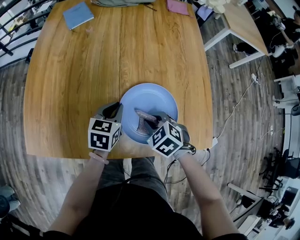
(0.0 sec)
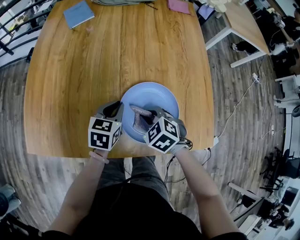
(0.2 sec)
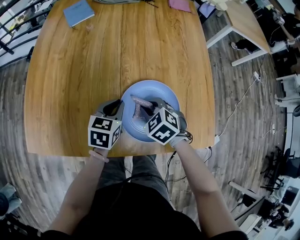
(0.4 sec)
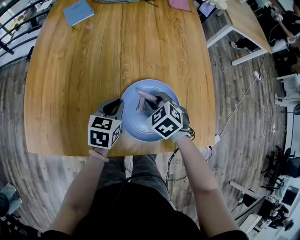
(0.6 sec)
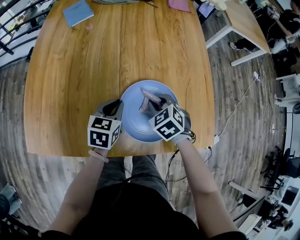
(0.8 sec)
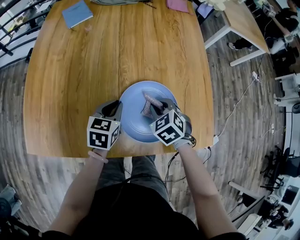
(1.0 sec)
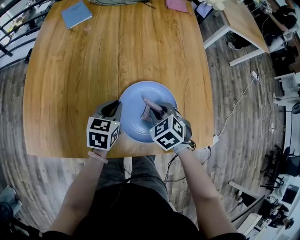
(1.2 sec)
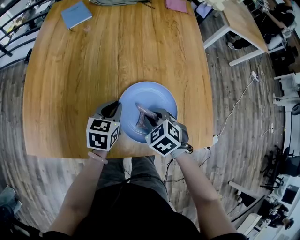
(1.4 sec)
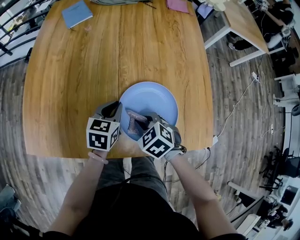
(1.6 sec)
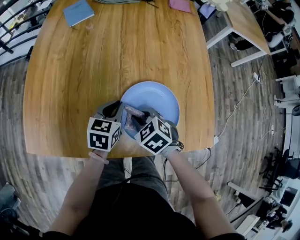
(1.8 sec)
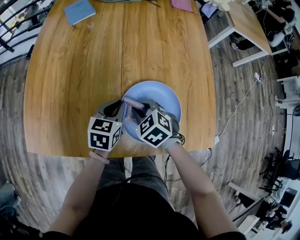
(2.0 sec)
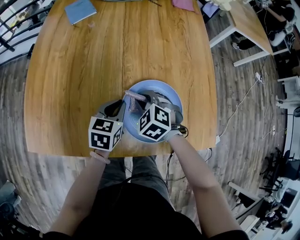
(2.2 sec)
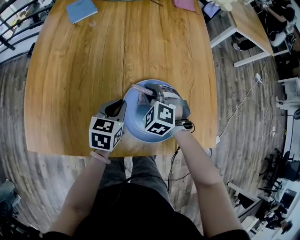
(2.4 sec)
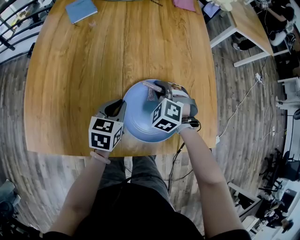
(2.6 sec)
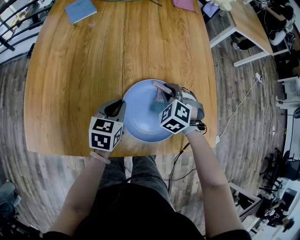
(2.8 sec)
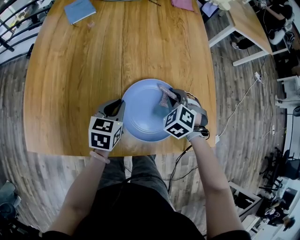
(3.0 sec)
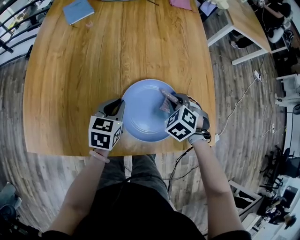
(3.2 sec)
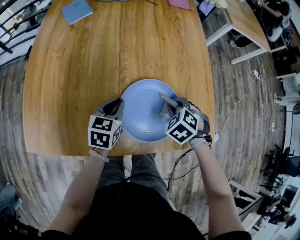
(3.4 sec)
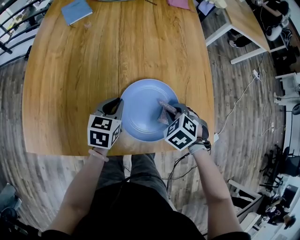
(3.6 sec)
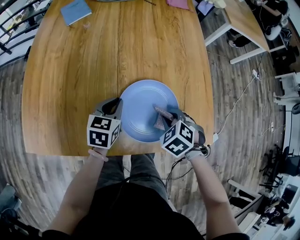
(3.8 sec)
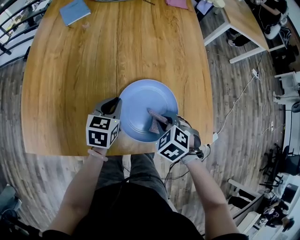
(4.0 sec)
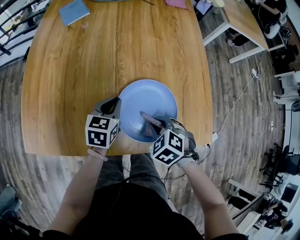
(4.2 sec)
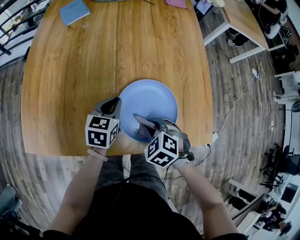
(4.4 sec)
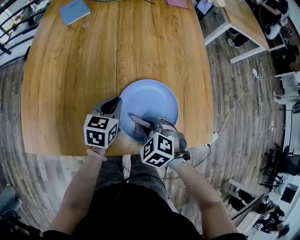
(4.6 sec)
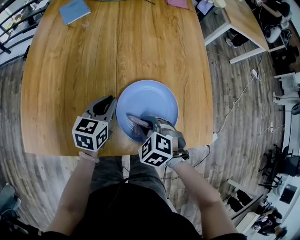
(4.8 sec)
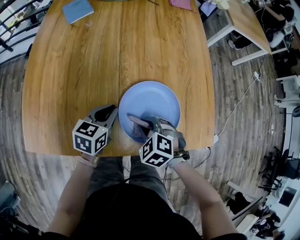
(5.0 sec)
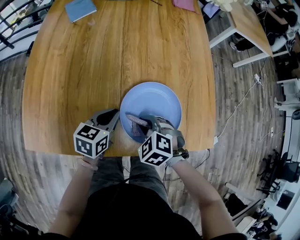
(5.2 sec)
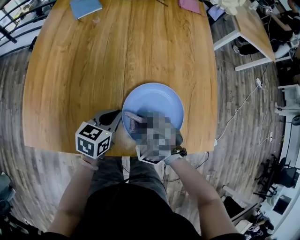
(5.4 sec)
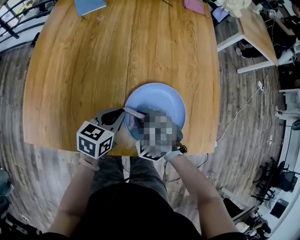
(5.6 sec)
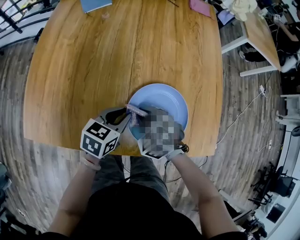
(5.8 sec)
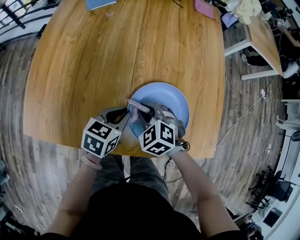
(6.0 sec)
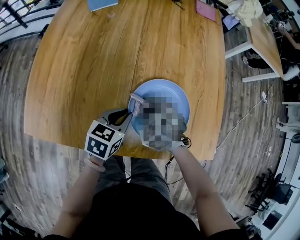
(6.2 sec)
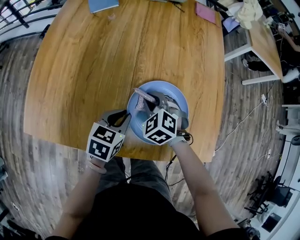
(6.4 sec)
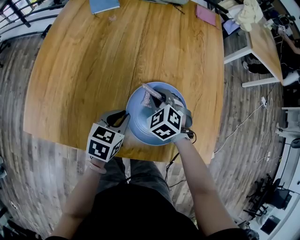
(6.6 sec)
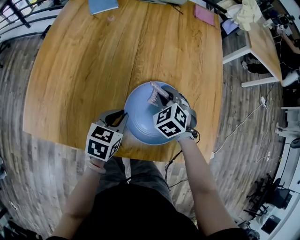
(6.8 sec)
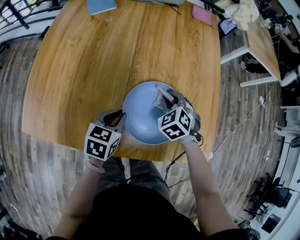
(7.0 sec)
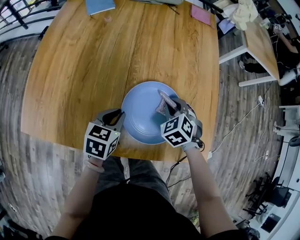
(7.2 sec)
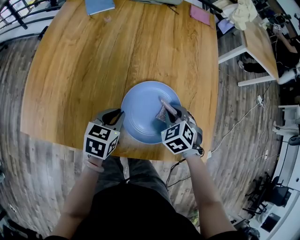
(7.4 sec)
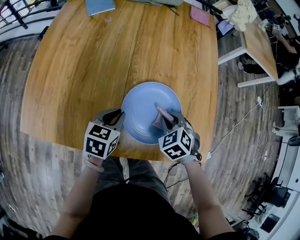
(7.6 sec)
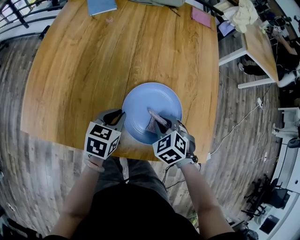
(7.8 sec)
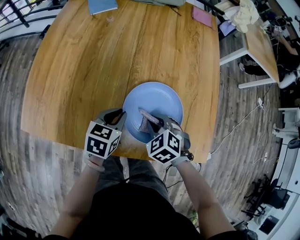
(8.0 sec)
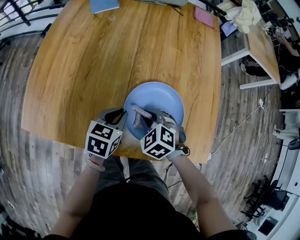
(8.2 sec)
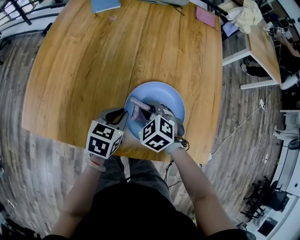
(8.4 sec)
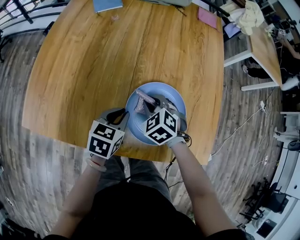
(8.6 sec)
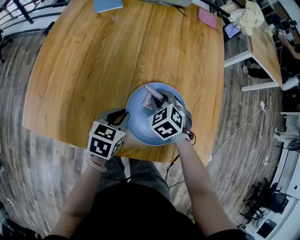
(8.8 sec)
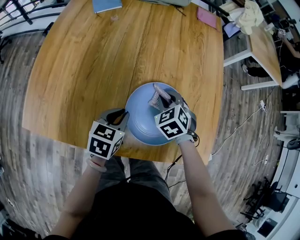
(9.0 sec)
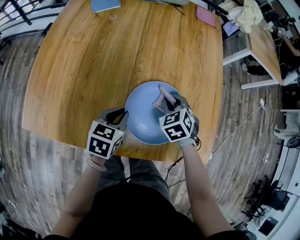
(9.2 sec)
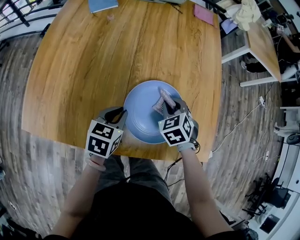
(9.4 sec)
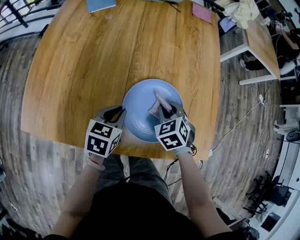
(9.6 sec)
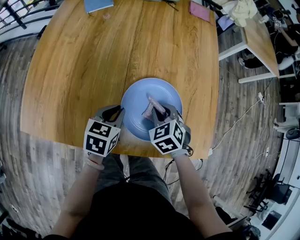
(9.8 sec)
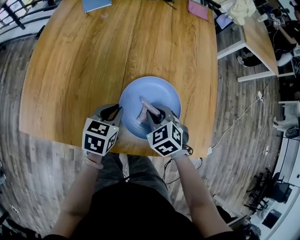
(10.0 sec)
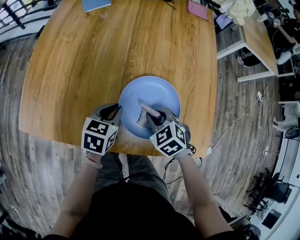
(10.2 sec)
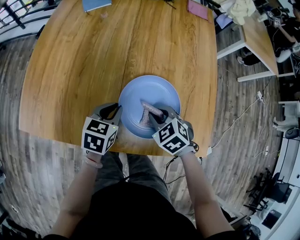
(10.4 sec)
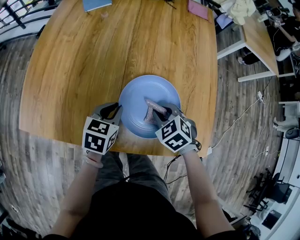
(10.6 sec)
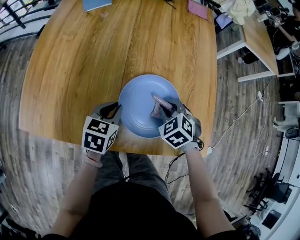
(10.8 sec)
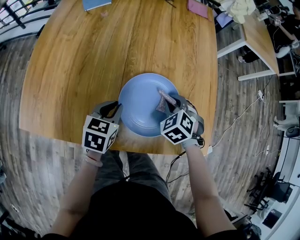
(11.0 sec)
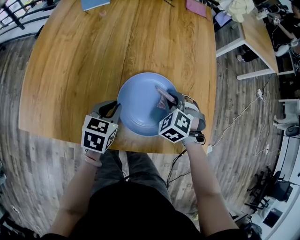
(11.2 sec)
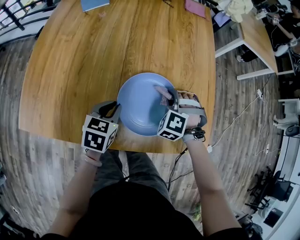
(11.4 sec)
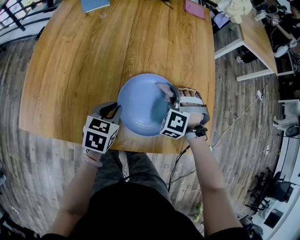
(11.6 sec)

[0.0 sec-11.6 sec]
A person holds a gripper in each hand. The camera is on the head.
1.4 sec to 2.8 sec: The right gripper is displaced forward and to the right by about 10 cm, and rotates approximately 30 degrees.
2.8 sec to 4.4 sec: The right gripper travels backward by some 15 cm, and rotates some 20 degrees.
4.4 sec to 5.8 sec: The right gripper heads to the left and forward, covering some 10 cm.
5.8 sec to 7.2 sec: The right gripper goes roughly 15 cm to the right and forward.
7.2 sec to 8.8 sec: The right gripper is displaced to the left by roughly 10 cm.
8.8 sec to 10.2 sec: The right gripper moves backward, some 10 cm.
10.2 sec to 11.6 sec: The right gripper is displaced forward and to the right by some 10 cm, and changes its angle by some 50 degrees.

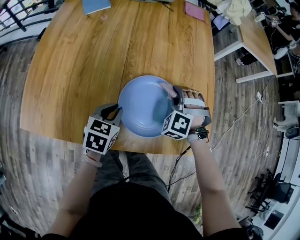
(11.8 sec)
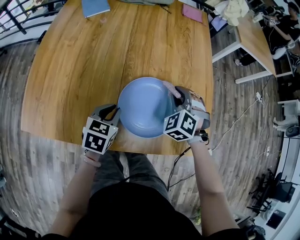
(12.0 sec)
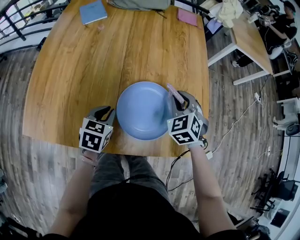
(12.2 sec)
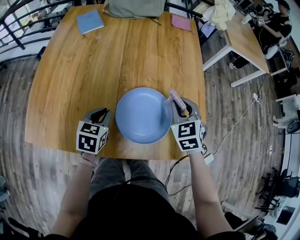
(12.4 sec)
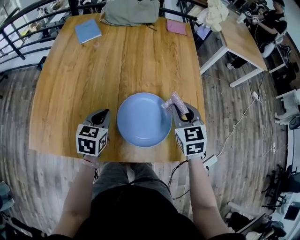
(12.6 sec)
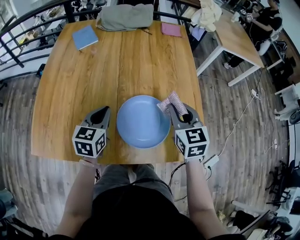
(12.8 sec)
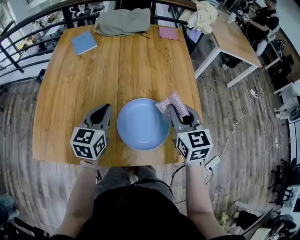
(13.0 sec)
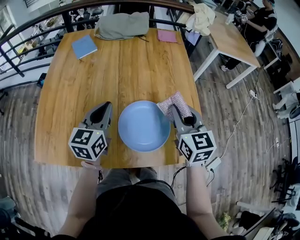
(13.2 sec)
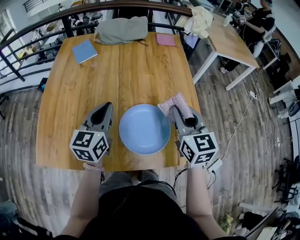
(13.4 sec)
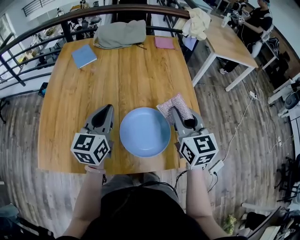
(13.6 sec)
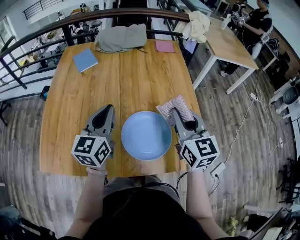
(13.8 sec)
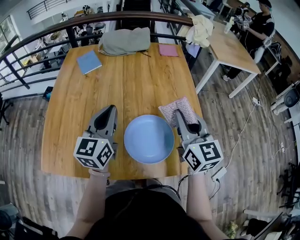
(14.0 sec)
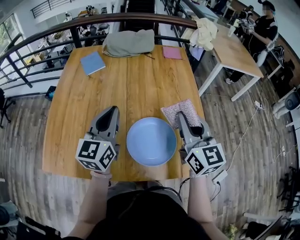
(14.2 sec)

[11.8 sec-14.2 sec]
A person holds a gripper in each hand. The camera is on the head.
11.8 sec to 13.0 sec: The left gripper moves upward and forward, approximately 15 cm, and changes its angle by approximately 30 degrees; the right gripper travels upward by some 15 cm, and twists about 70 degrees clockwise, seen from behind.
13.0 sec to 14.2 sec: Both grippers move upward, roughly 10 cm.

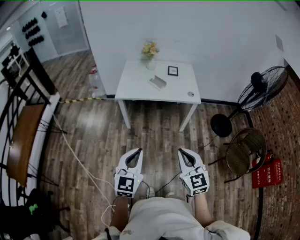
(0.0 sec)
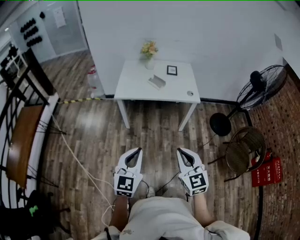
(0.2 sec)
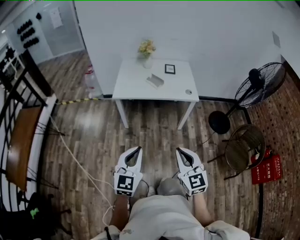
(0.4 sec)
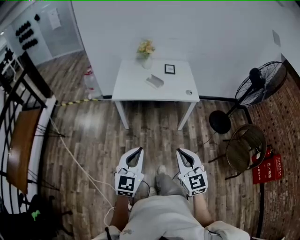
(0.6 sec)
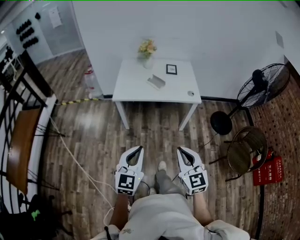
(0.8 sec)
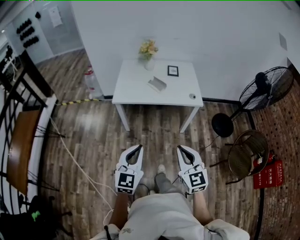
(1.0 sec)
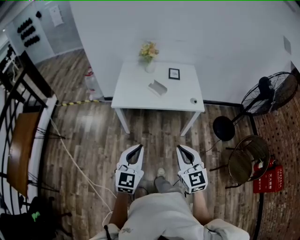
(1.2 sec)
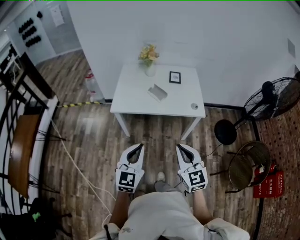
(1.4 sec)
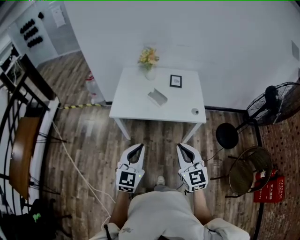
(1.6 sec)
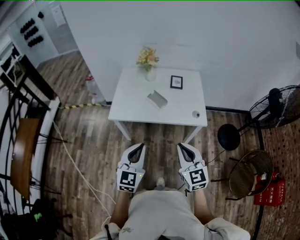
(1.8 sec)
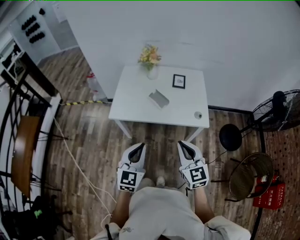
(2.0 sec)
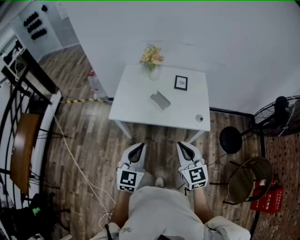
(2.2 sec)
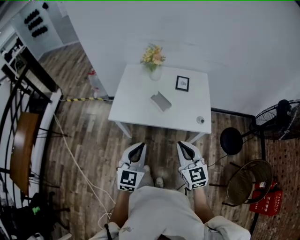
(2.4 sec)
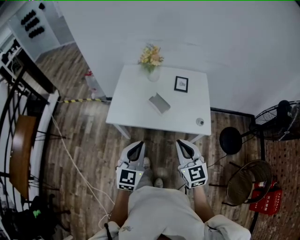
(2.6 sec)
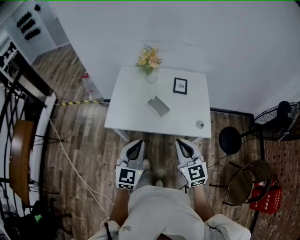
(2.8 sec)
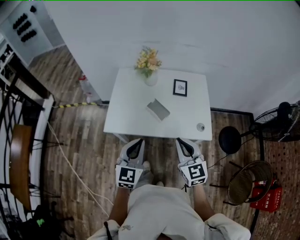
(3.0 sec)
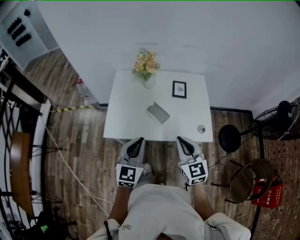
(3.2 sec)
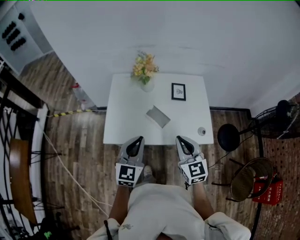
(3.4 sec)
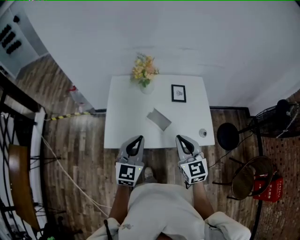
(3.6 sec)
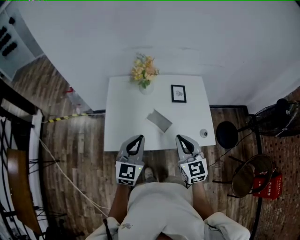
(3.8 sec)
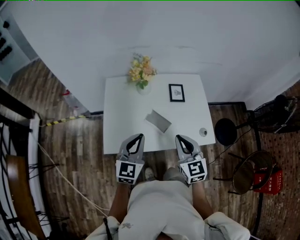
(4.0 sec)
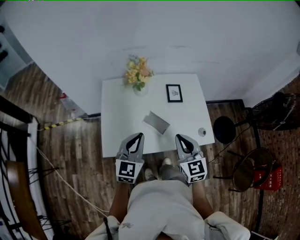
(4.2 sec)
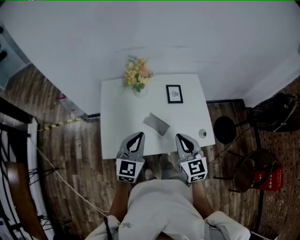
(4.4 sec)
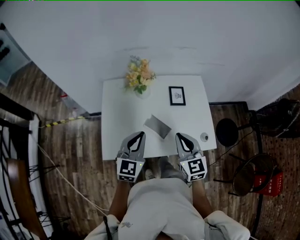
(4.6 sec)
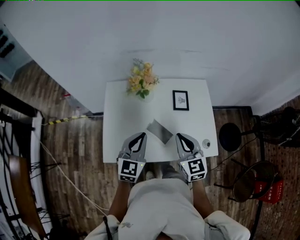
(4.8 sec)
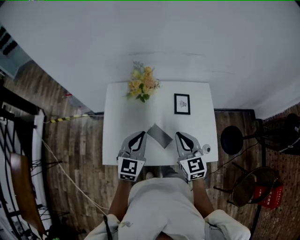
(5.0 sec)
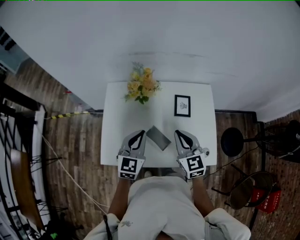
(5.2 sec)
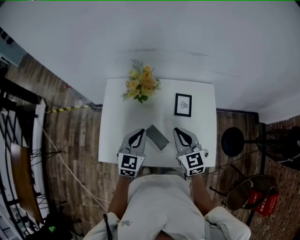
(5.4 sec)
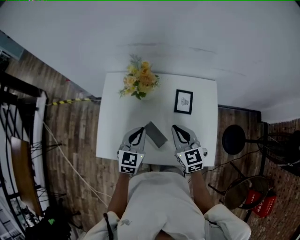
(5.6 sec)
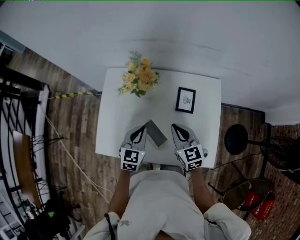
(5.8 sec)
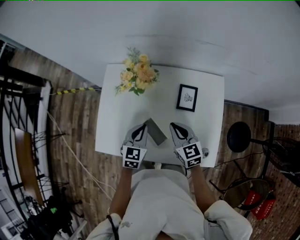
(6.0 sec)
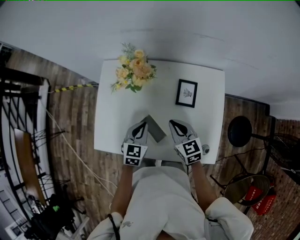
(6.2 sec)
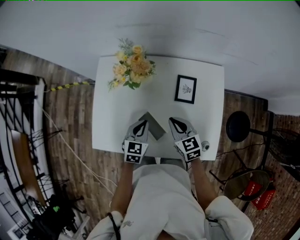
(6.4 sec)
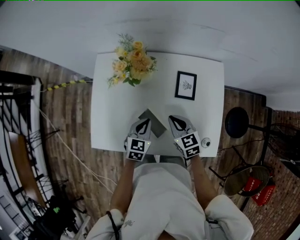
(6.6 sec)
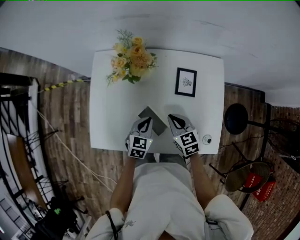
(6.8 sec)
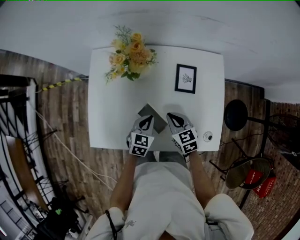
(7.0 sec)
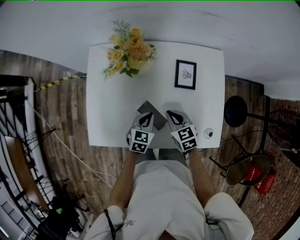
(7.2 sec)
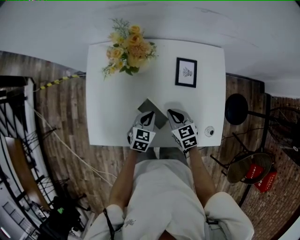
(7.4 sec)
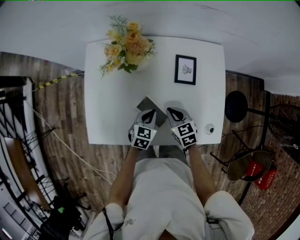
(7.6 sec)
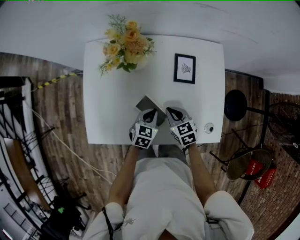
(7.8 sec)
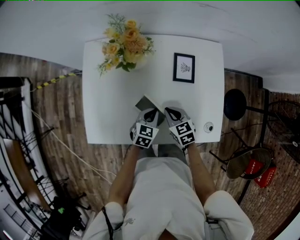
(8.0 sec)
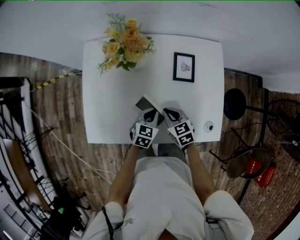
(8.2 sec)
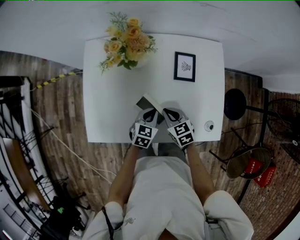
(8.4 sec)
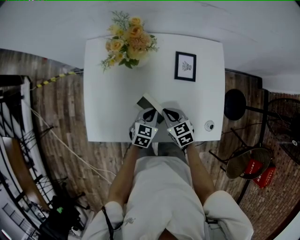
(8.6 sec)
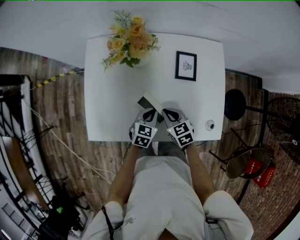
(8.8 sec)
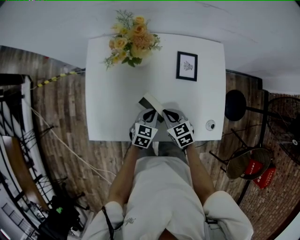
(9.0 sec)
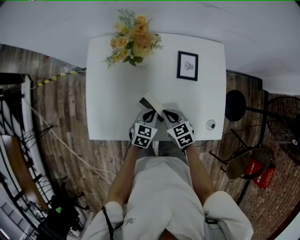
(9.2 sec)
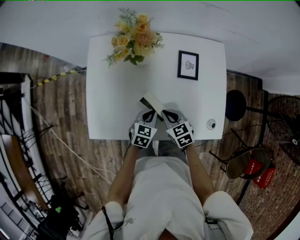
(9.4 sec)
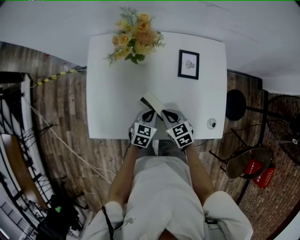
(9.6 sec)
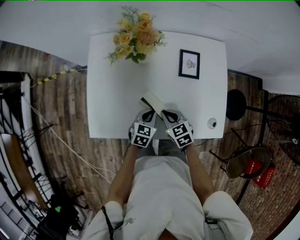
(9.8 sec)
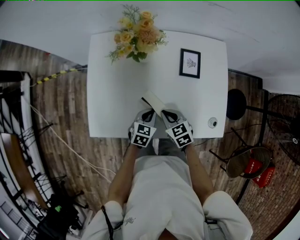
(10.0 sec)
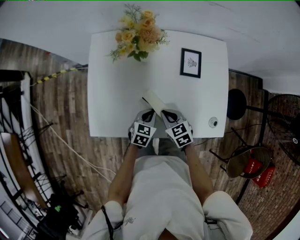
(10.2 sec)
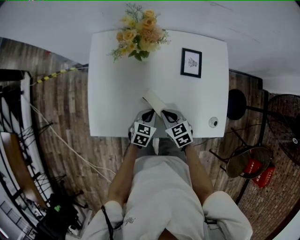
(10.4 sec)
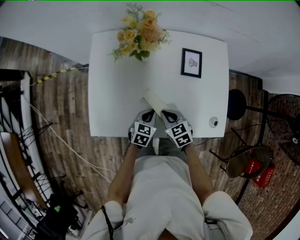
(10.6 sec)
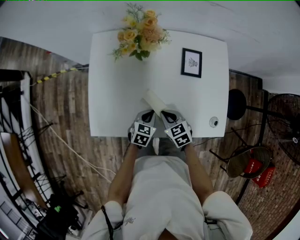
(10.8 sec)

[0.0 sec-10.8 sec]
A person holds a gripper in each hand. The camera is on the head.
0.0 sec to 1.6 sec: Both grippers move forward, roughly 25 cm.
1.6 sec to 3.0 sec: The two grippers go about 20 cm forward.
3.0 sec to 4.6 sec: Both grippers travel together forward, roughly 20 cm.
4.6 sec to 6.2 sec: The right gripper goes some 20 cm forward and downward, and swivels some 30 degrees, while the left gripper shifts roughly 20 cm downward, forward and to the right, and swivels approximately 30 degrees.
6.2 sec to 7.8 sec: The two grippers go about 10 cm downward.
7.8 sec to 9.2 sec: The grippers make only small movements.
9.2 sec to 10.8 sec: The grippers stay close to where they were, moving slightly.
